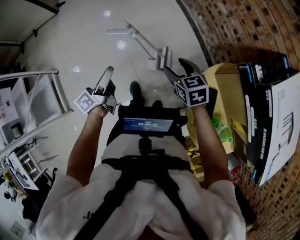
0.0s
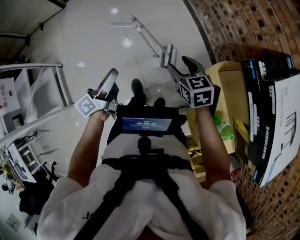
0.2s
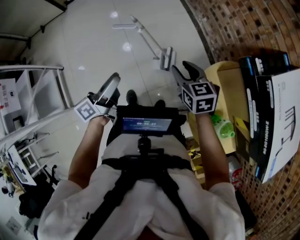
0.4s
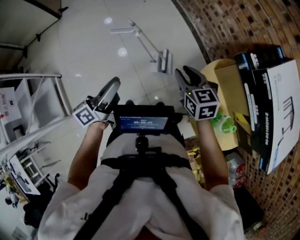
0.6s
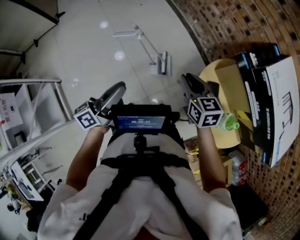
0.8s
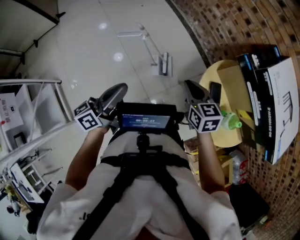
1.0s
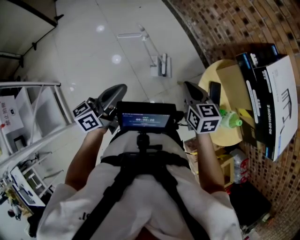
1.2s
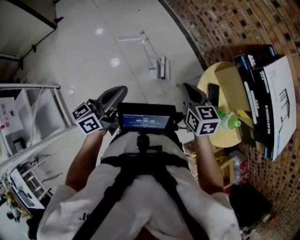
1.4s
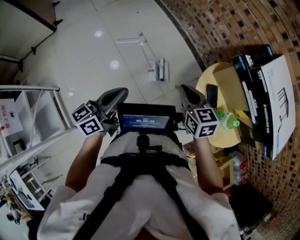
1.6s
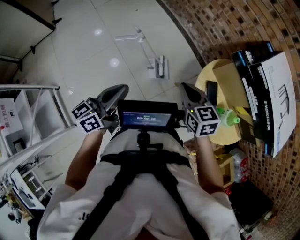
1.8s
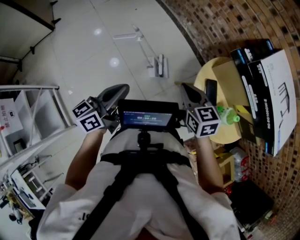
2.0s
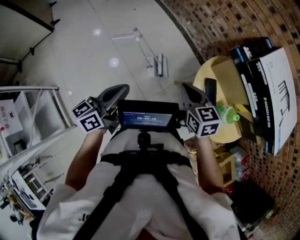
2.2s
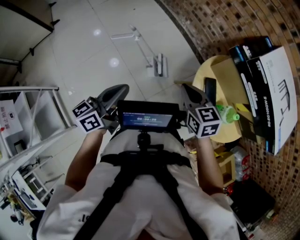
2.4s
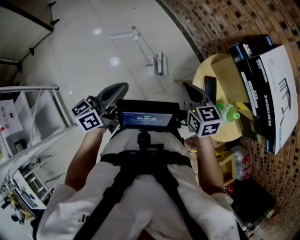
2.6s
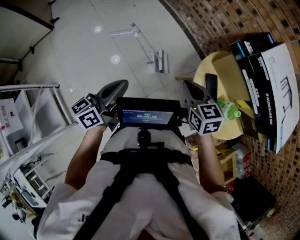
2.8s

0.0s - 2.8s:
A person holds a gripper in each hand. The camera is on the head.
0.0s - 1.4s: The right gripper shifts by some 15 cm, and closes its fingers.

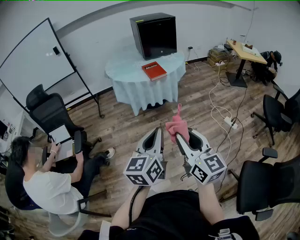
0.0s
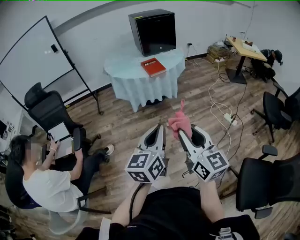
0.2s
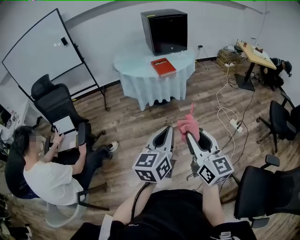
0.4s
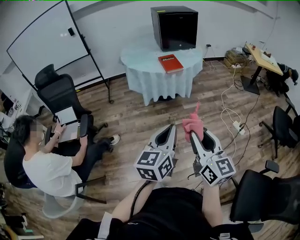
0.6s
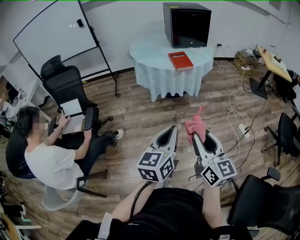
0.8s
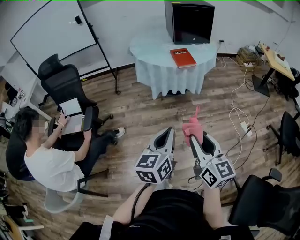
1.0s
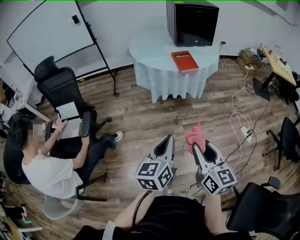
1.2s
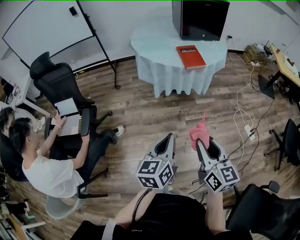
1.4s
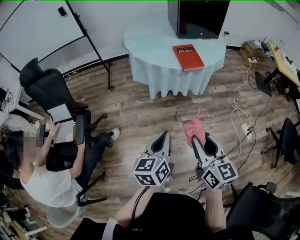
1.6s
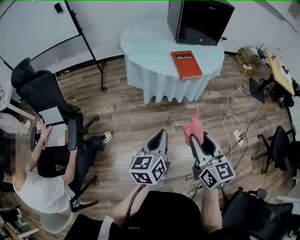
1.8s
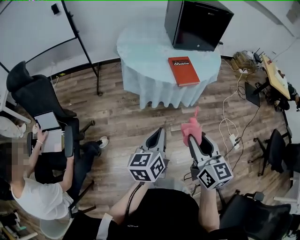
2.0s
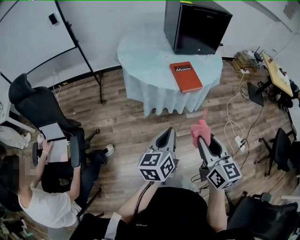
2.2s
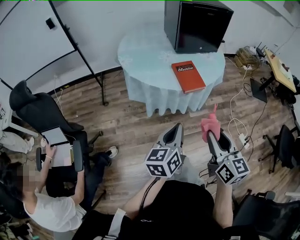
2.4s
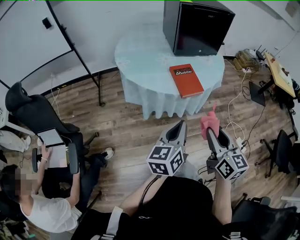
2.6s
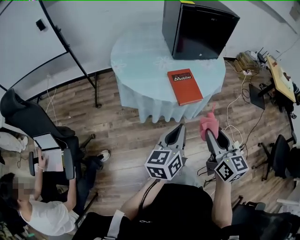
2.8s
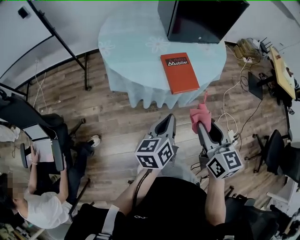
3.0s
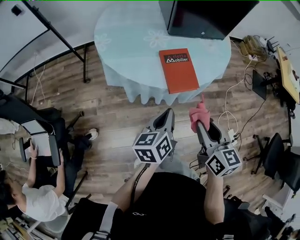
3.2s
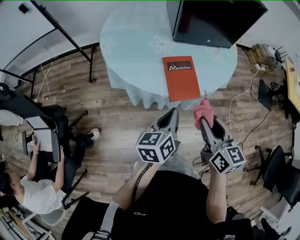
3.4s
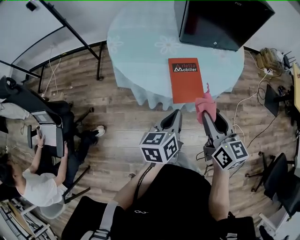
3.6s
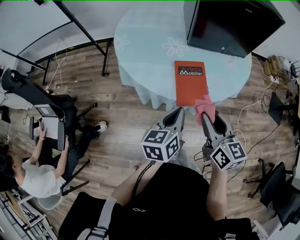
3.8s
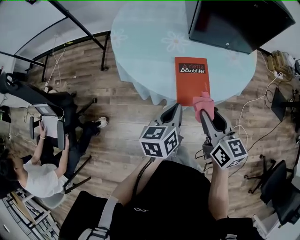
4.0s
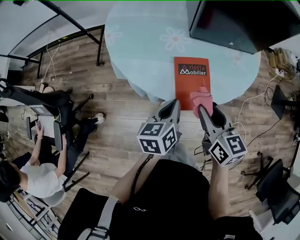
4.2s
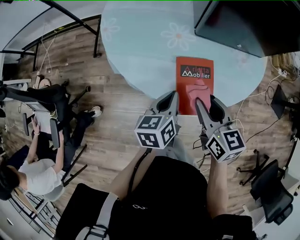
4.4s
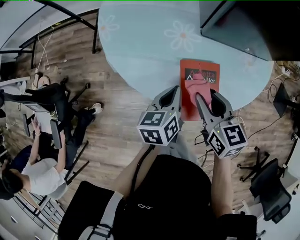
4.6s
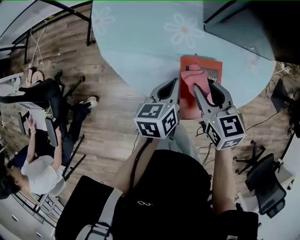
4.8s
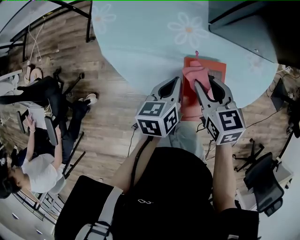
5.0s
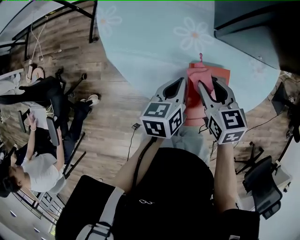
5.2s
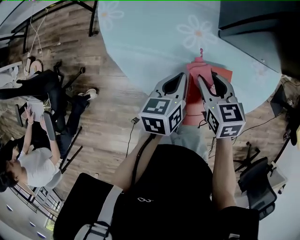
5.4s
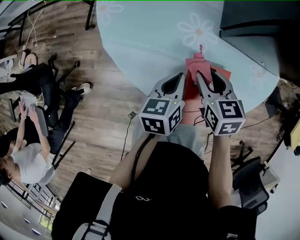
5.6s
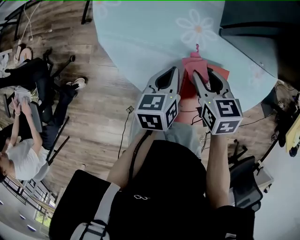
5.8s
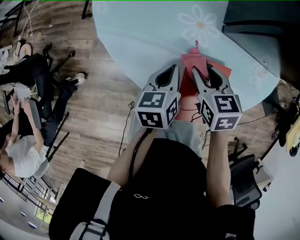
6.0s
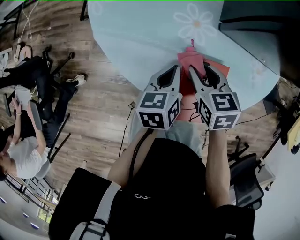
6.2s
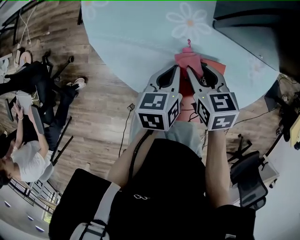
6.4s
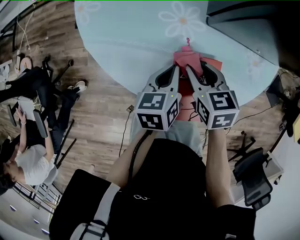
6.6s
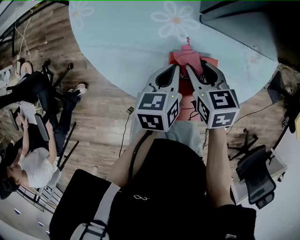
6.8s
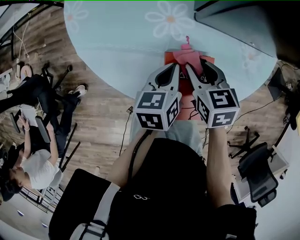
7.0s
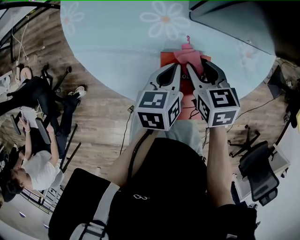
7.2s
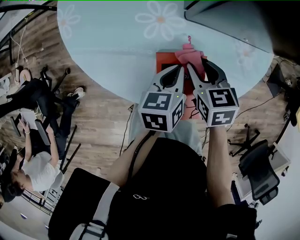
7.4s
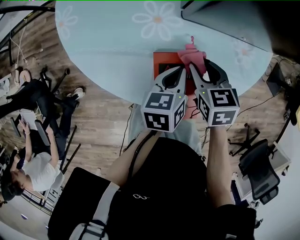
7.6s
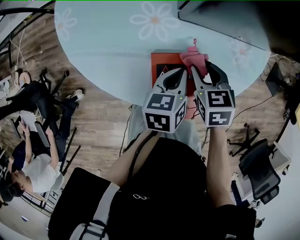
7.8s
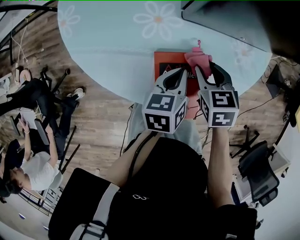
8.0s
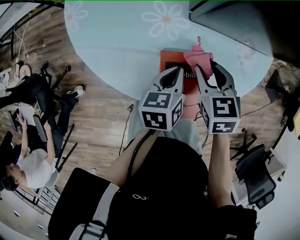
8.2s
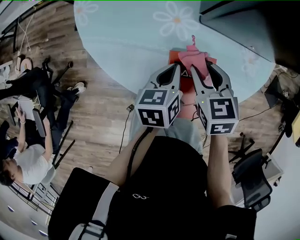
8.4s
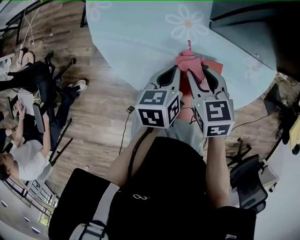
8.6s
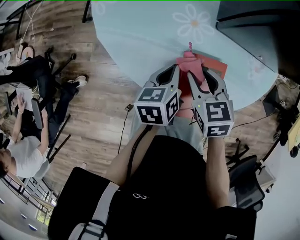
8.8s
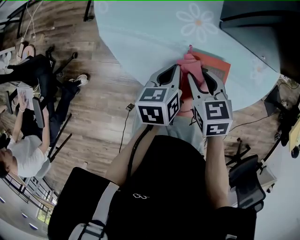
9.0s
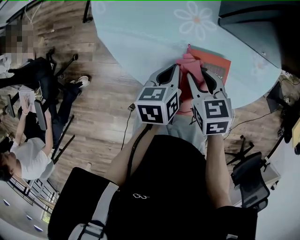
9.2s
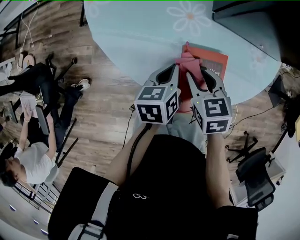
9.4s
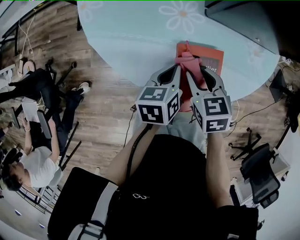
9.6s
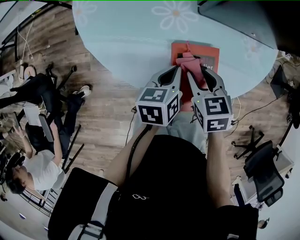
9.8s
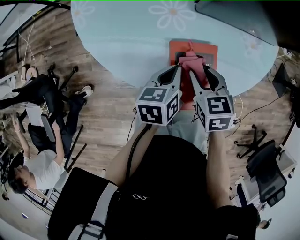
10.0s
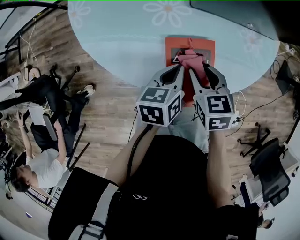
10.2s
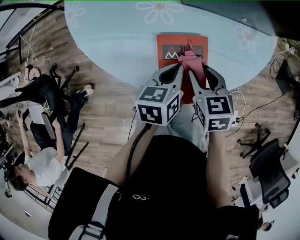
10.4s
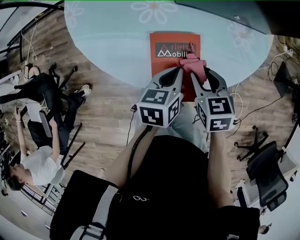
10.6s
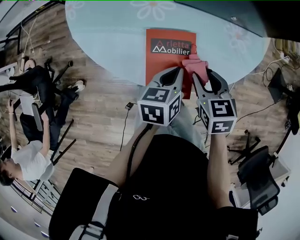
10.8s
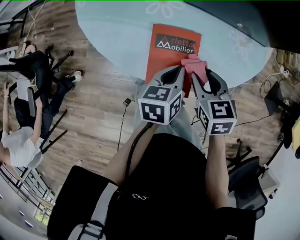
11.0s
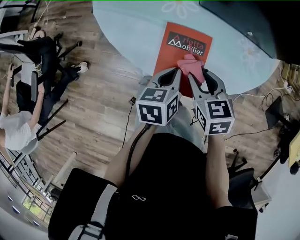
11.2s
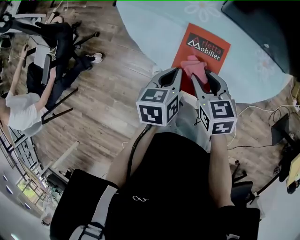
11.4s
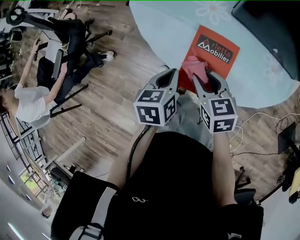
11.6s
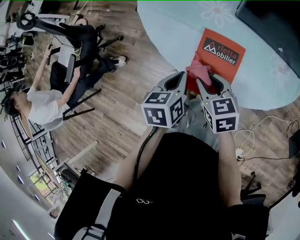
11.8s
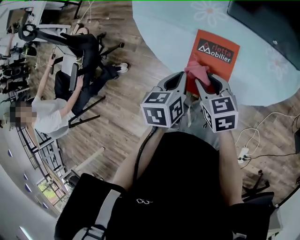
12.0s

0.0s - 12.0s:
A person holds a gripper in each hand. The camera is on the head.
0.0s - 1.6s: The right gripper heads forward, covering roughly 25 cm; the left gripper travels forward, downward and to the left by about 25 cm, and swivels approximately 20 degrees.
1.6s - 3.0s: Both grippers move forward, some 30 cm.
3.0s - 4.4s: The grippers both shift forward by approximately 25 cm. The right gripper rotates about 20 degrees.
4.4s - 6.0s: The left gripper travels forward and downward by some 10 cm; the right gripper is displaced downward and forward by approximately 15 cm, and rotates about 30 degrees.
6.0s - 7.6s: Both grippers travel together to the right, some 15 cm.
7.6s - 9.0s: The left gripper heads to the left, covering approximately 15 cm. Meanwhile the right gripper moves to the left and backward, roughly 10 cm.
9.0s - 10.4s: The grippers both shift to the right by some 10 cm.
10.4s - 12.0s: The right gripper shifts by some 10 cm, and swivels approximately 30 degrees, while the left gripper shifts by approximately 10 cm, and turns by roughly 30 degrees.

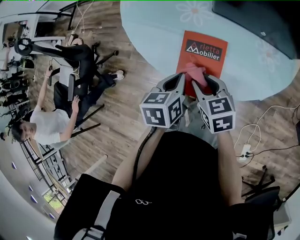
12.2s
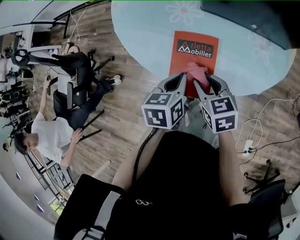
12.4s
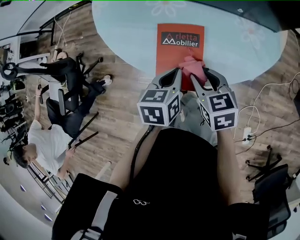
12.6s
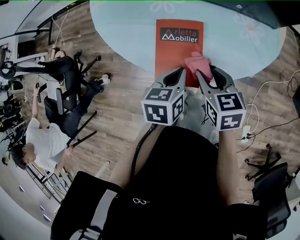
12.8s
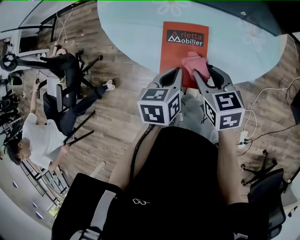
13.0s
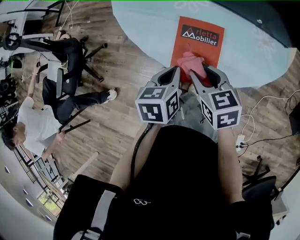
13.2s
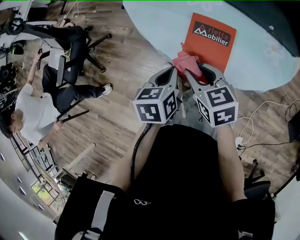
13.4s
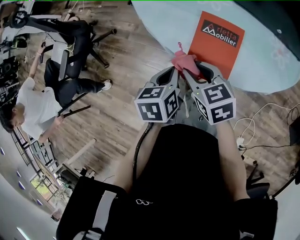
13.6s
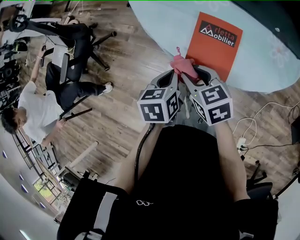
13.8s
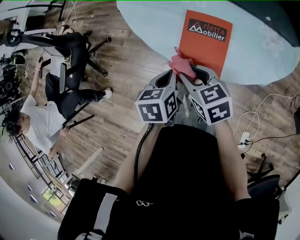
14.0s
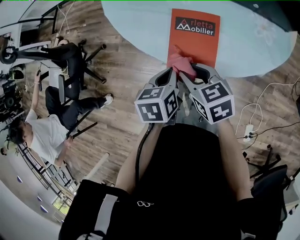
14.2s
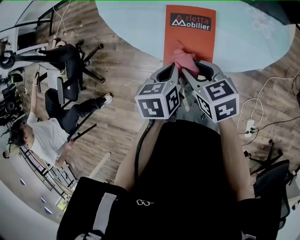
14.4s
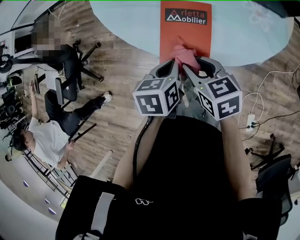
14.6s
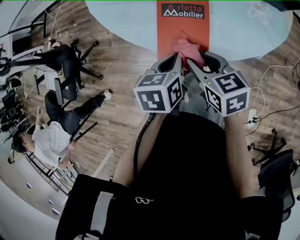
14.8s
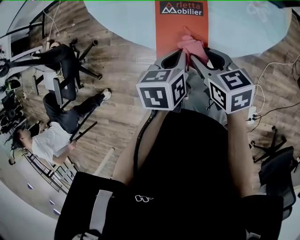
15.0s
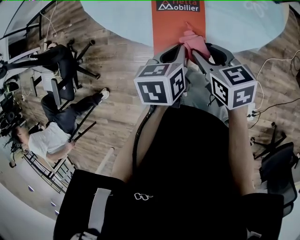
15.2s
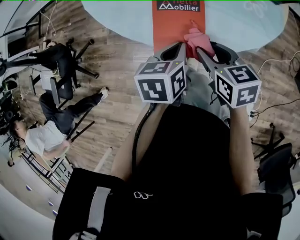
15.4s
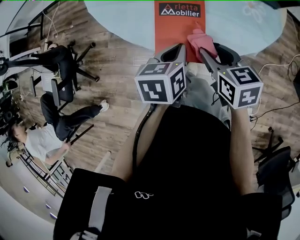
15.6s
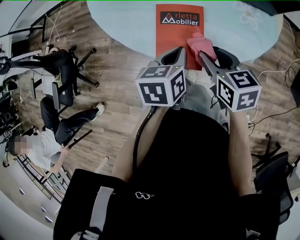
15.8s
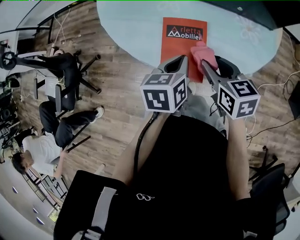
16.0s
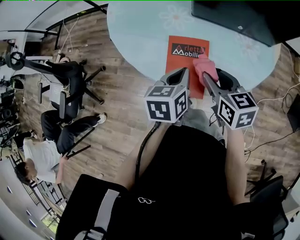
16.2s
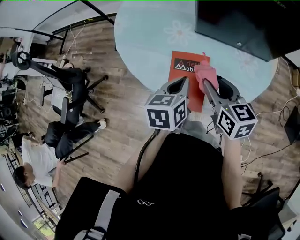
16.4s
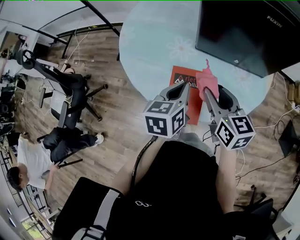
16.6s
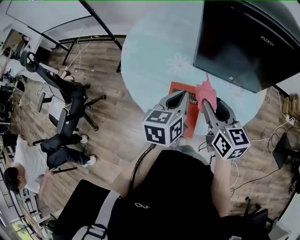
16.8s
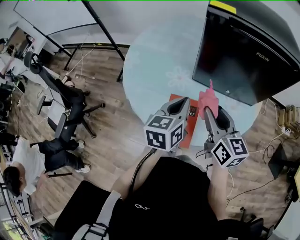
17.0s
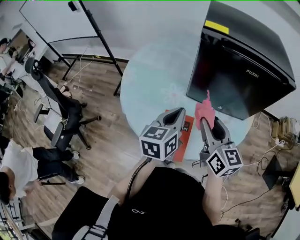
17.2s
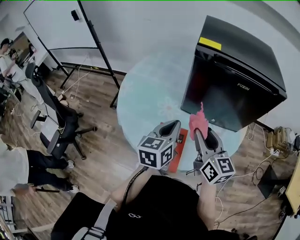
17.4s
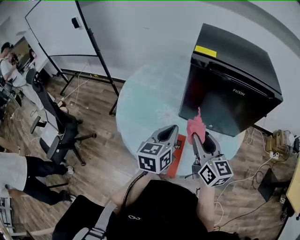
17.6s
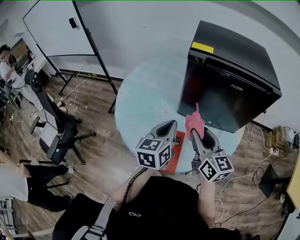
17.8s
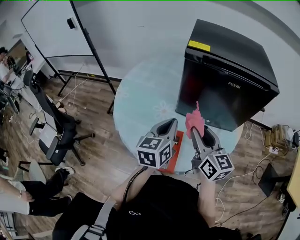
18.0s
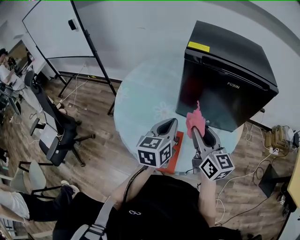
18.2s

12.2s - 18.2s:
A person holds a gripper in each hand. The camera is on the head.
12.2s - 13.8s: The left gripper moves about 10 cm, while the right gripper moves about 10 cm.
13.8s - 15.2s: Both grippers travel together to the right, some 10 cm. The right gripper swivels some 20 degrees.
15.2s - 16.6s: Both grippers move upward and forward, roughly 15 cm. The right gripper turns by approximately 20 degrees.
16.6s - 18.2s: The two grippers go about 10 cm upward.

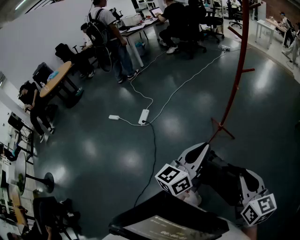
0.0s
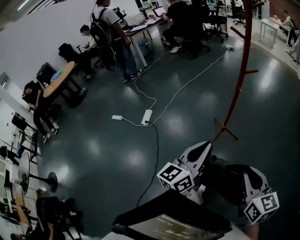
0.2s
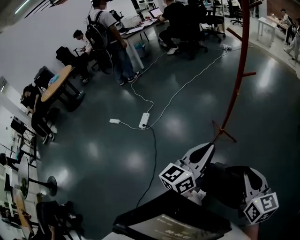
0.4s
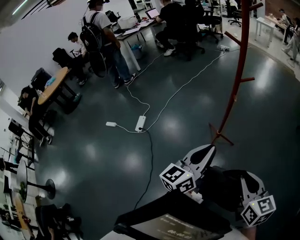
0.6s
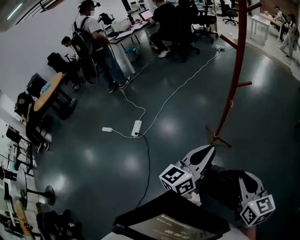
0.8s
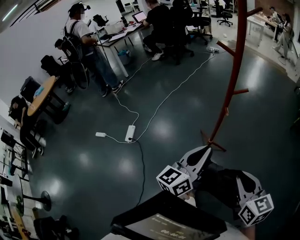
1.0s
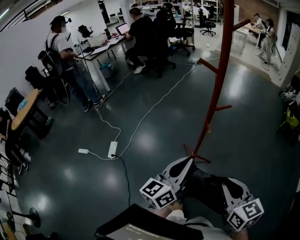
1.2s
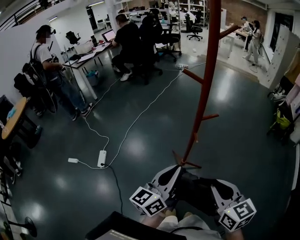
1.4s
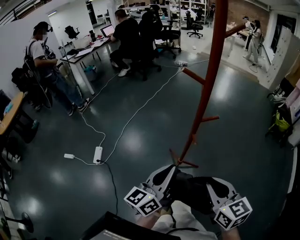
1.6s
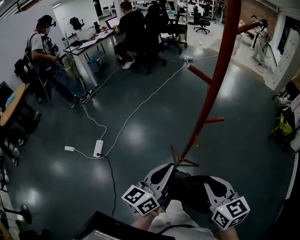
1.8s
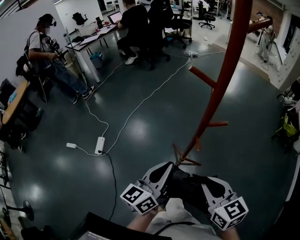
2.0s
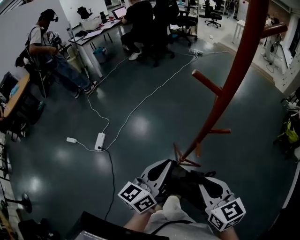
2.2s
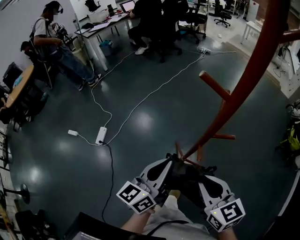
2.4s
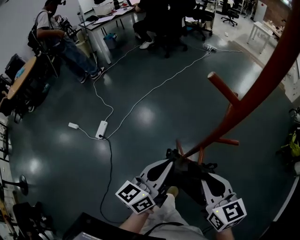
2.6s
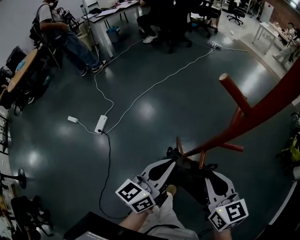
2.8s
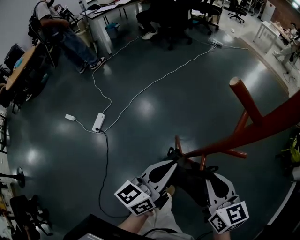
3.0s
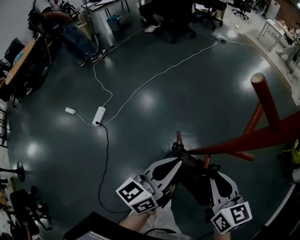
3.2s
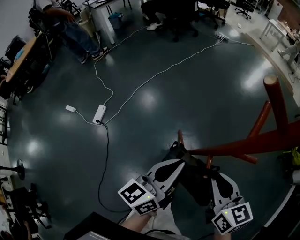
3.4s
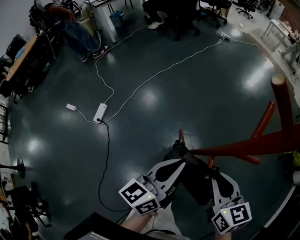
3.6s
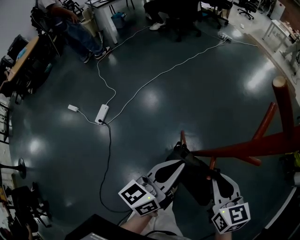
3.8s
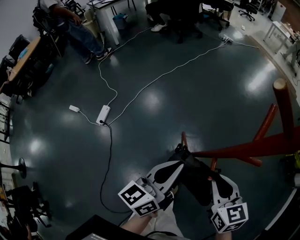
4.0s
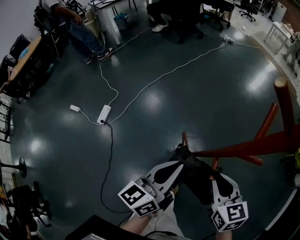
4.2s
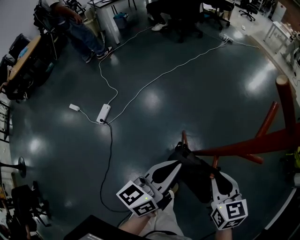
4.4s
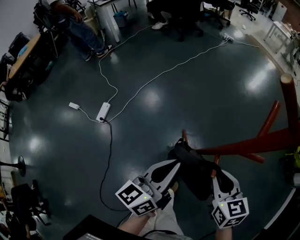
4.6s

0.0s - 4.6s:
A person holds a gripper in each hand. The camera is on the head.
0.0s - 1.6s: Both grippers move forward, approximately 30 cm.
1.6s - 3.0s: Both grippers move forward, roughly 20 cm.
3.0s - 4.6s: The right gripper heads downward, covering approximately 10 cm.
